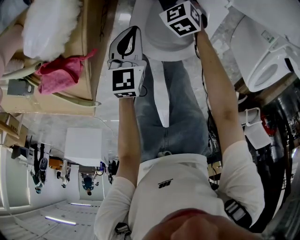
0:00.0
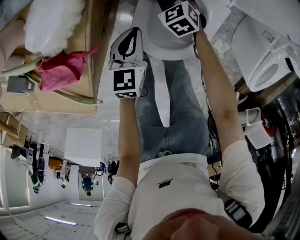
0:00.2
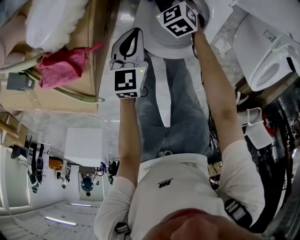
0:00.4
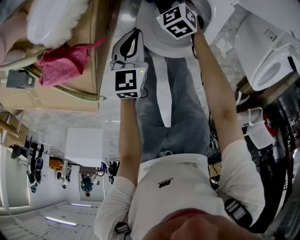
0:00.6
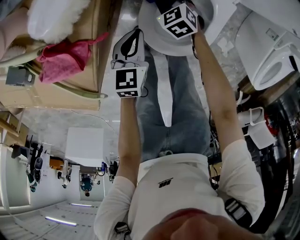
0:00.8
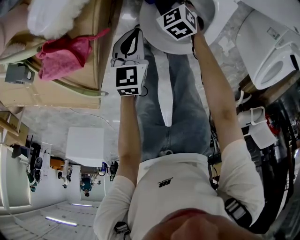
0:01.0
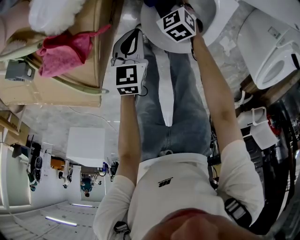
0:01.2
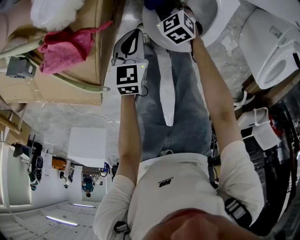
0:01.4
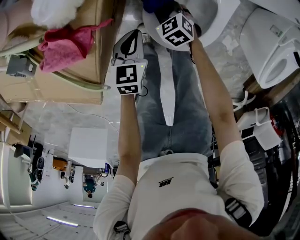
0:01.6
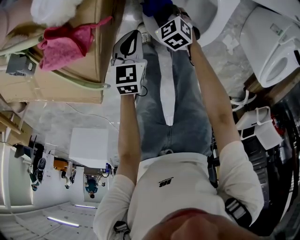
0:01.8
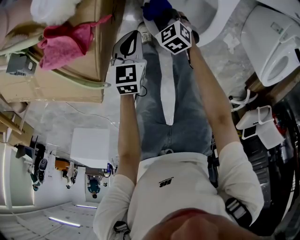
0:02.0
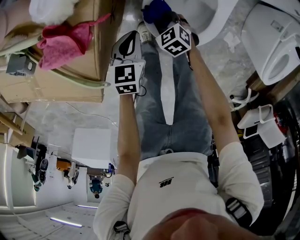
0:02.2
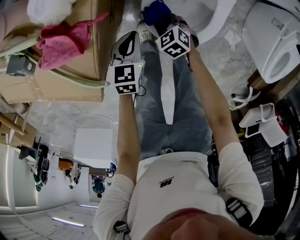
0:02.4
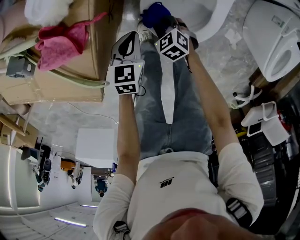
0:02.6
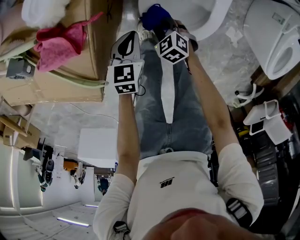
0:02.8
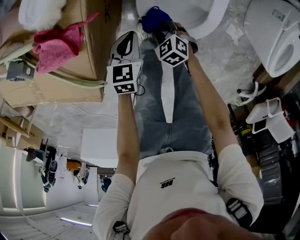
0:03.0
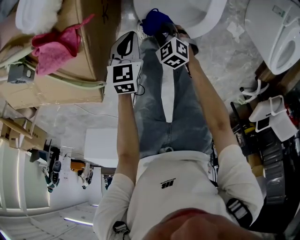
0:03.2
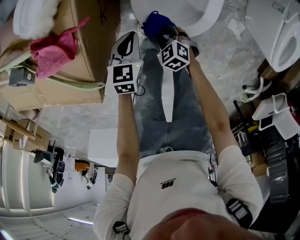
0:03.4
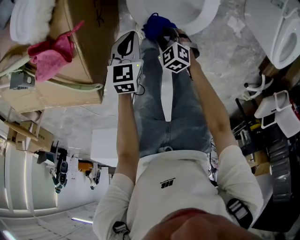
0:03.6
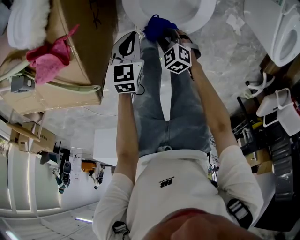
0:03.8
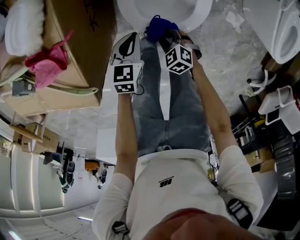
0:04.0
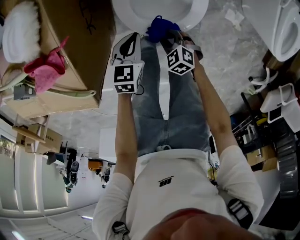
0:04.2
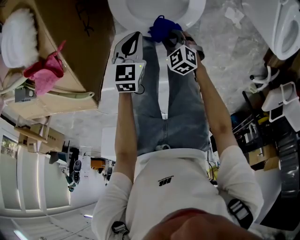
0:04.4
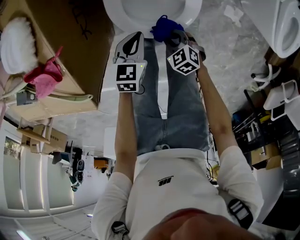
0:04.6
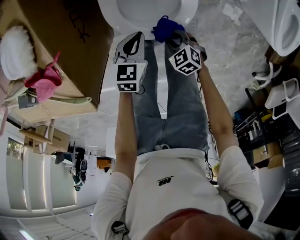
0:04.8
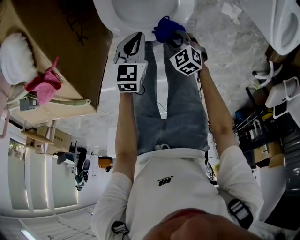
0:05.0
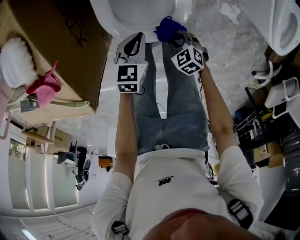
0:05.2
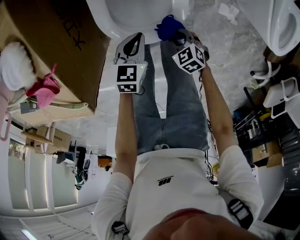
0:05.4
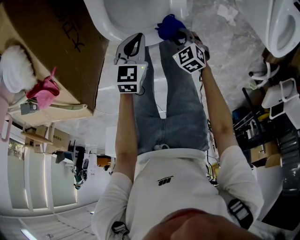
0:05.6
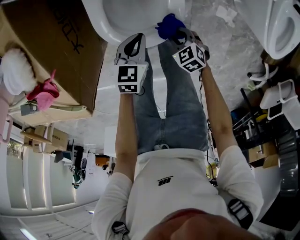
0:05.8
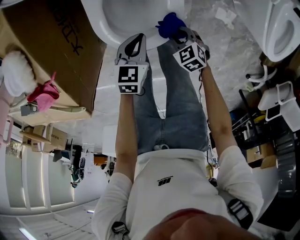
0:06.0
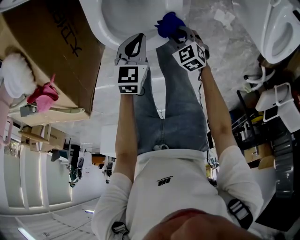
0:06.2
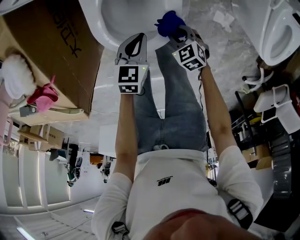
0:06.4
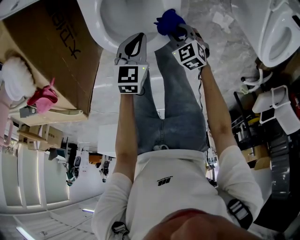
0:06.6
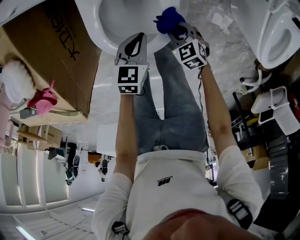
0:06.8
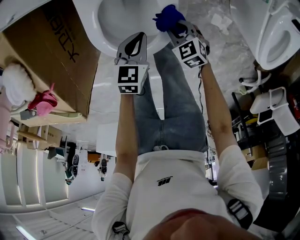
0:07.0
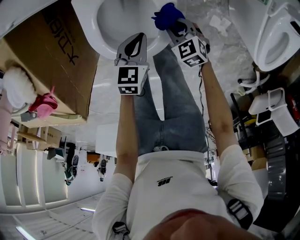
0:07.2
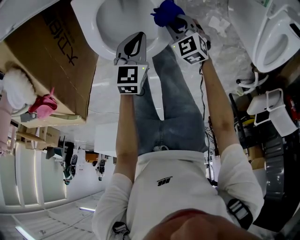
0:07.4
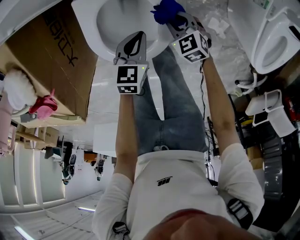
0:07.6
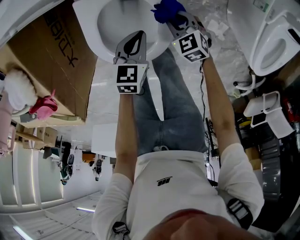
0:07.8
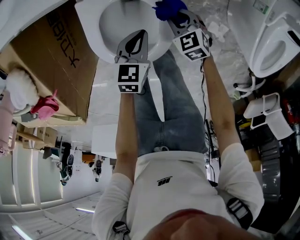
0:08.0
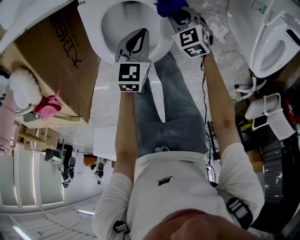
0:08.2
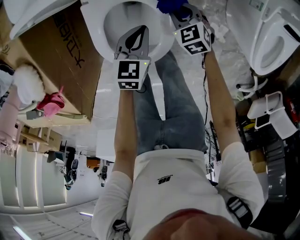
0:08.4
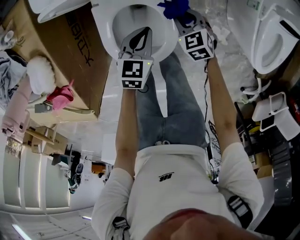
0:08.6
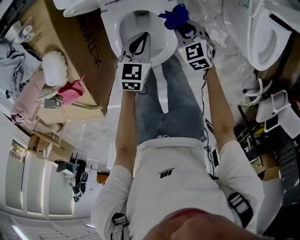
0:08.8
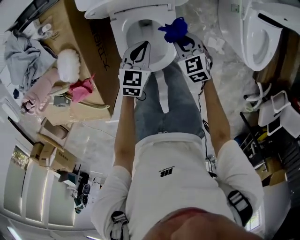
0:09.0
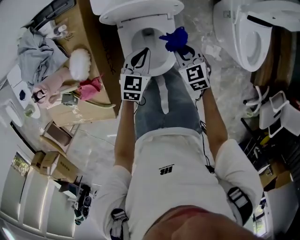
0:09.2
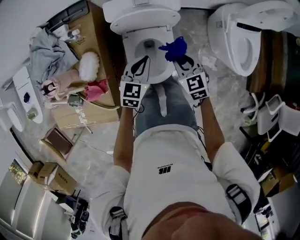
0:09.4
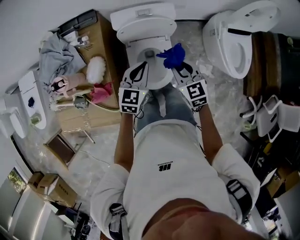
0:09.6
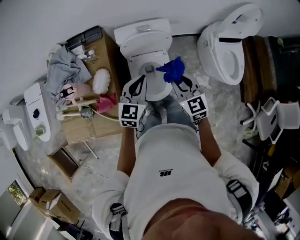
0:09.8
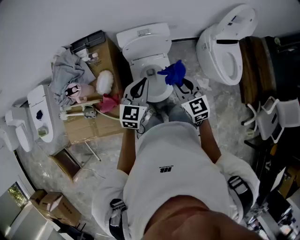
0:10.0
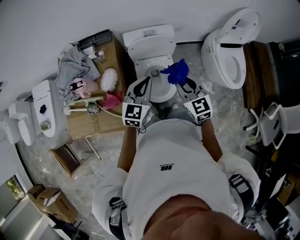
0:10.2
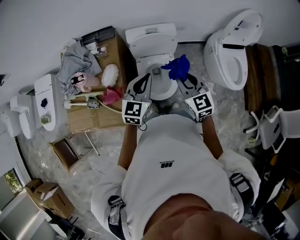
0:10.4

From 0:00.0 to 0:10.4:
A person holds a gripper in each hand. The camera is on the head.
From 0:00.0 to 0:01.4: The two grippers go approximately 10 cm backward and to the left.
From 0:01.4 to 0:03.0: The right gripper is displaced backward by about 15 cm.
From 0:03.0 to 0:04.4: The right gripper goes about 10 cm to the right and backward, while the left gripper goes approximately 10 cm to the right.
From 0:04.4 to 0:06.0: The grippers both shift to the right by roughly 10 cm.
From 0:06.0 to 0:07.4: The right gripper is displaced forward and to the right by roughly 15 cm, while the left gripper heads forward and to the right, covering roughly 10 cm.
From 0:07.4 to 0:09.0: The two grippers go approximately 20 cm upward. The right gripper changes its angle by about 20 degrees.
From 0:09.0 to 0:10.4: The two grippers go approximately 40 cm upward. The left gripper swivels some 30 degrees; the right gripper angles its fingers upward, by roughly 30 degrees.

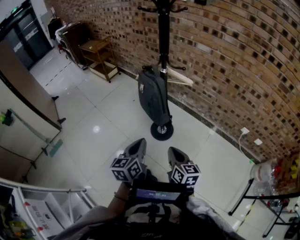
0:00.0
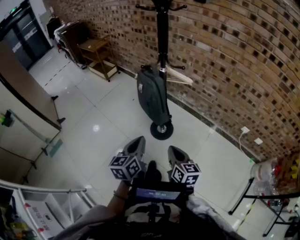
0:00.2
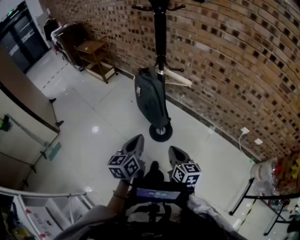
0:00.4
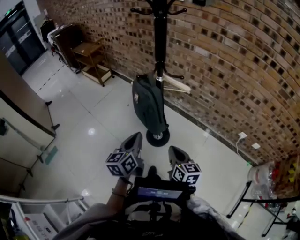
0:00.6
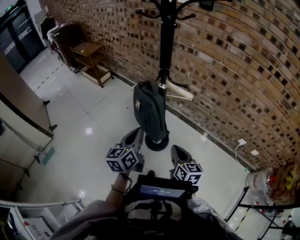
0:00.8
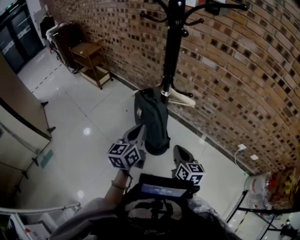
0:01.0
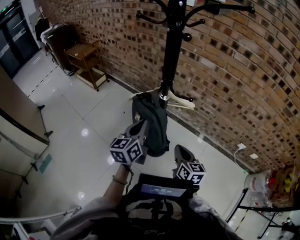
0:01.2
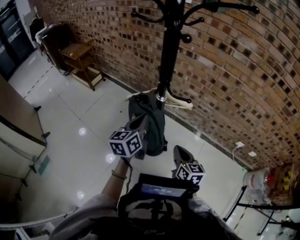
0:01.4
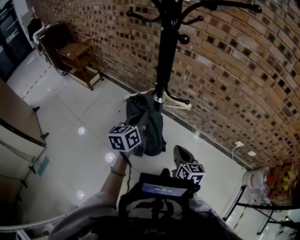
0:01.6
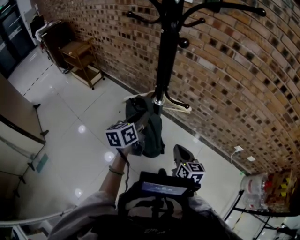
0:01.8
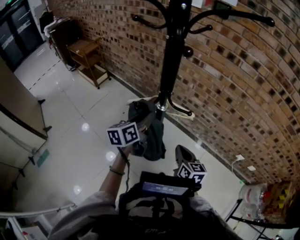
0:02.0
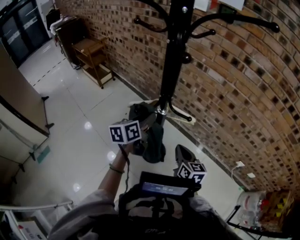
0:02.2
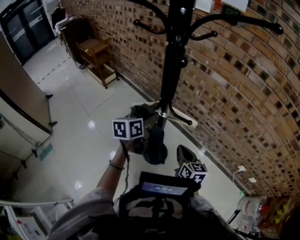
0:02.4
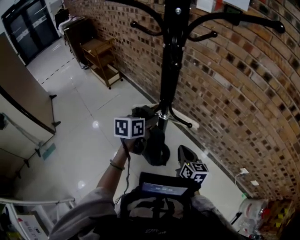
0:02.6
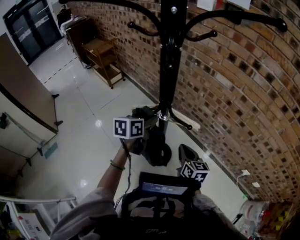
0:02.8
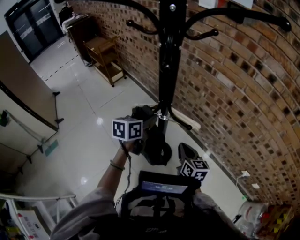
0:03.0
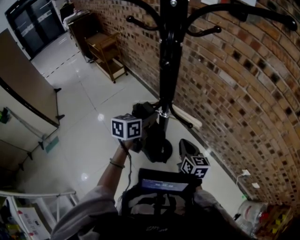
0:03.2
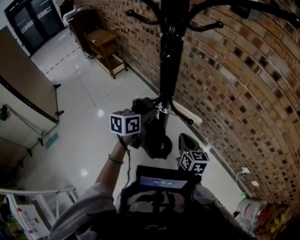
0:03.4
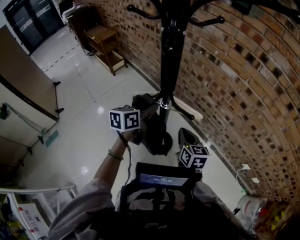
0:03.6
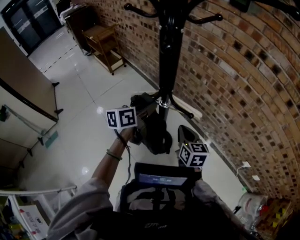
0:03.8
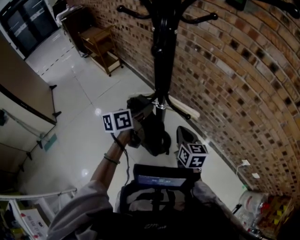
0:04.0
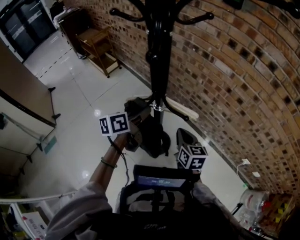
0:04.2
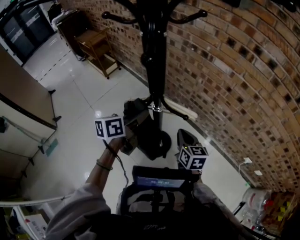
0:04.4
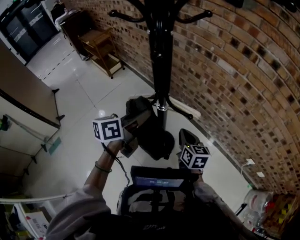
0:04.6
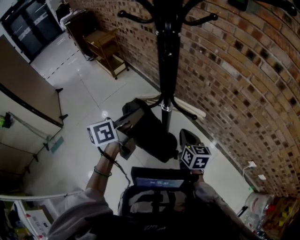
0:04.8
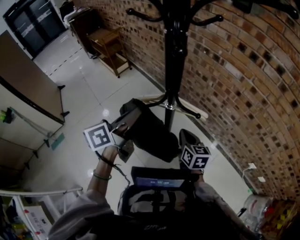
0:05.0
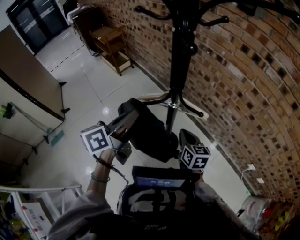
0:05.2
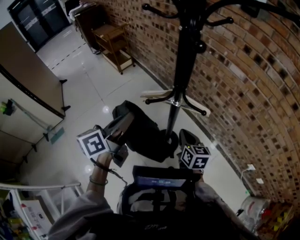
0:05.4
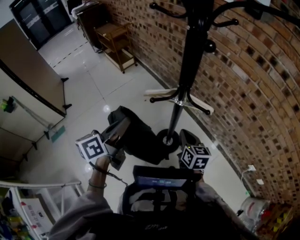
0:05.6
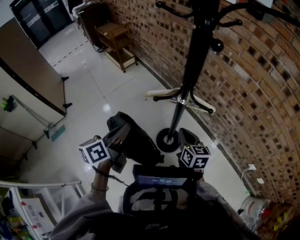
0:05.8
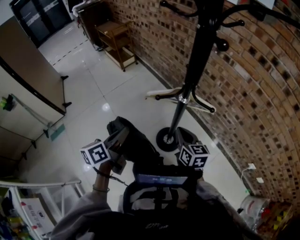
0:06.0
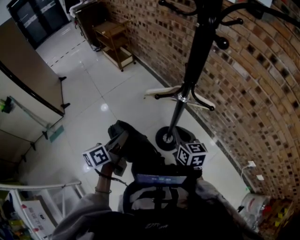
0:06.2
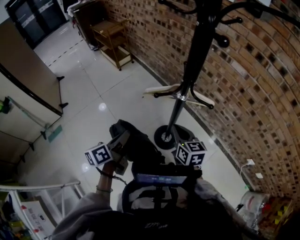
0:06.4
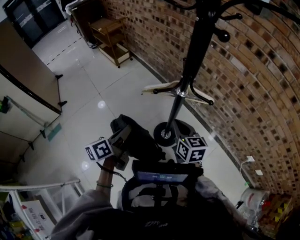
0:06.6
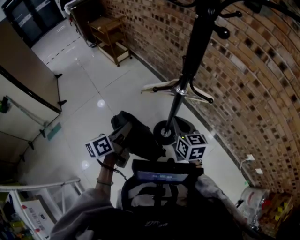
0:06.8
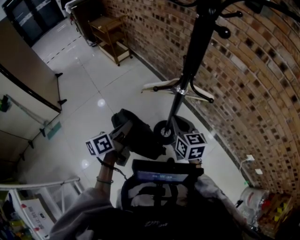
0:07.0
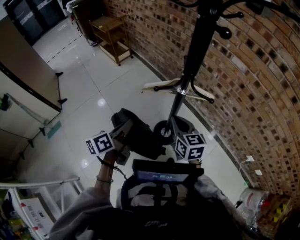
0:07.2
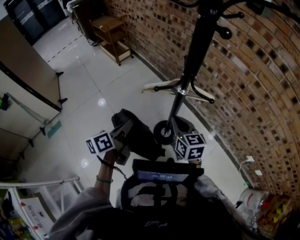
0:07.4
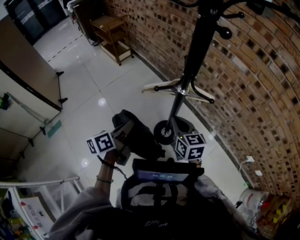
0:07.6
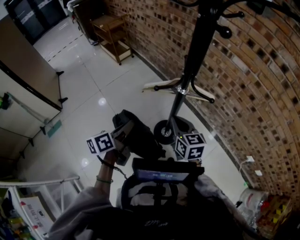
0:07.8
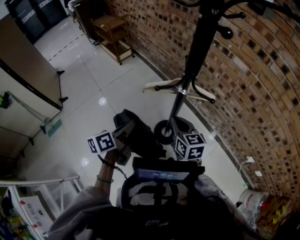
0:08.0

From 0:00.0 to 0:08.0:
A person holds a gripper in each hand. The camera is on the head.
From 0:00.0 to 0:01.6: The two grippers go some 30 cm forward.
From 0:01.6 to 0:03.2: The right gripper is displaced forward by some 15 cm. The left gripper travels forward by approximately 10 cm, and opens and closes again.
From 0:03.2 to 0:04.8: The left gripper goes roughly 10 cm upward and backward, and rotates about 20 degrees.
From 0:04.8 to 0:06.4: The right gripper shifts some 10 cm to the left and backward. Meanwhile the left gripper is displaced backward, to the left and downward by some 20 cm.
From 0:06.4 to 0:08.0: The grippers move only a little.

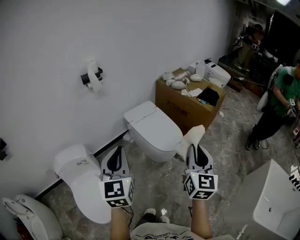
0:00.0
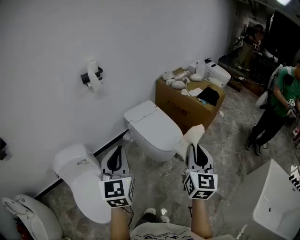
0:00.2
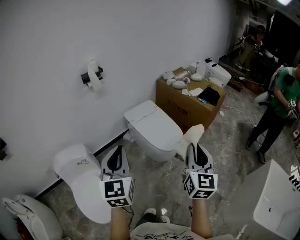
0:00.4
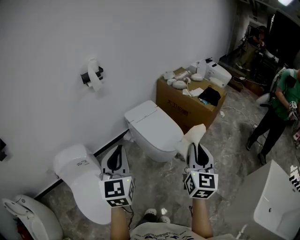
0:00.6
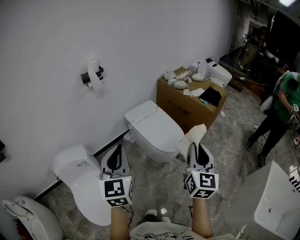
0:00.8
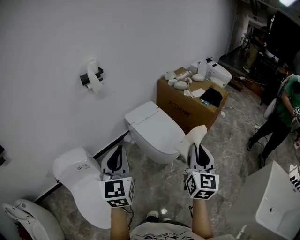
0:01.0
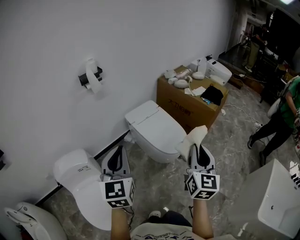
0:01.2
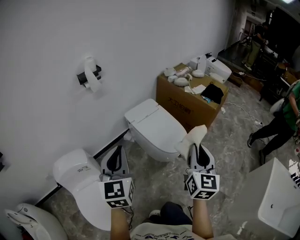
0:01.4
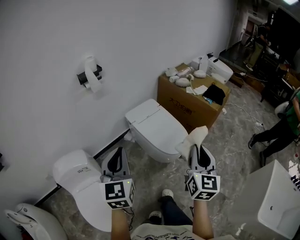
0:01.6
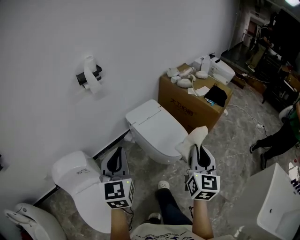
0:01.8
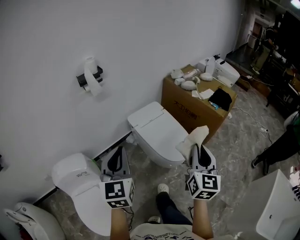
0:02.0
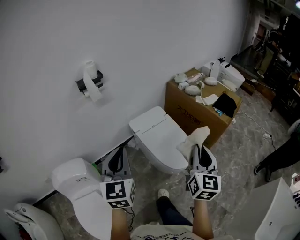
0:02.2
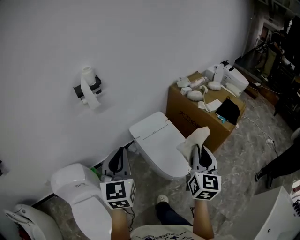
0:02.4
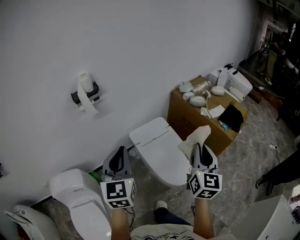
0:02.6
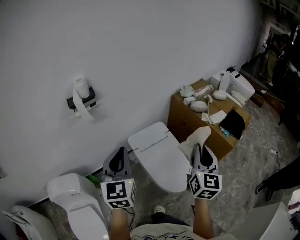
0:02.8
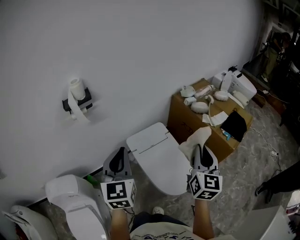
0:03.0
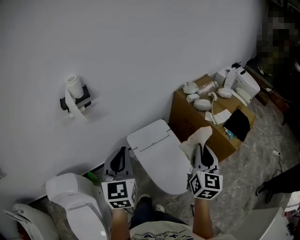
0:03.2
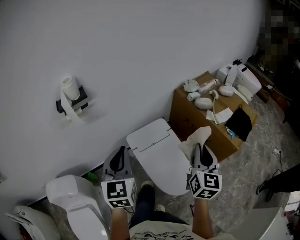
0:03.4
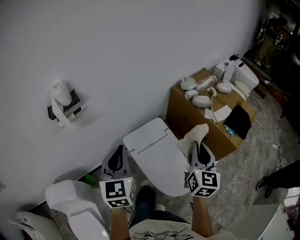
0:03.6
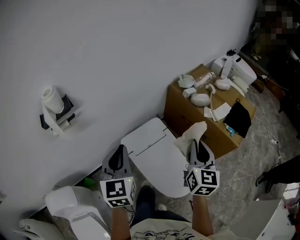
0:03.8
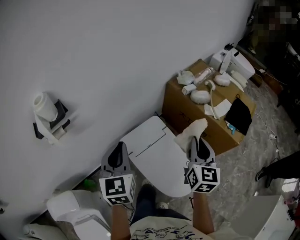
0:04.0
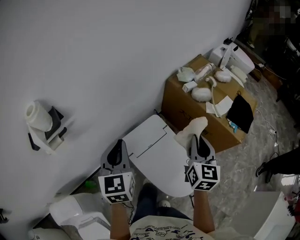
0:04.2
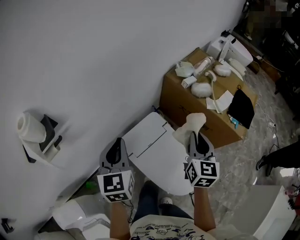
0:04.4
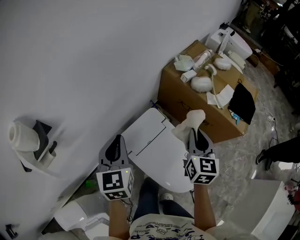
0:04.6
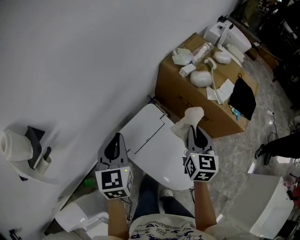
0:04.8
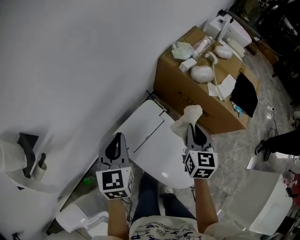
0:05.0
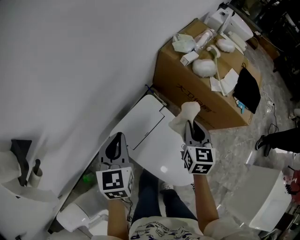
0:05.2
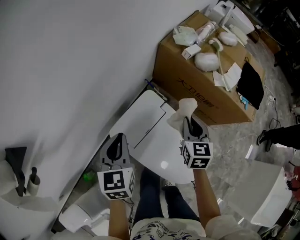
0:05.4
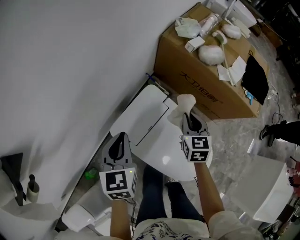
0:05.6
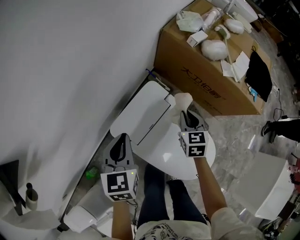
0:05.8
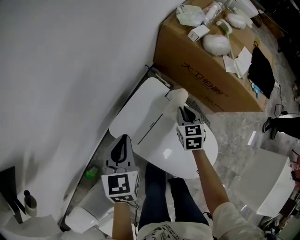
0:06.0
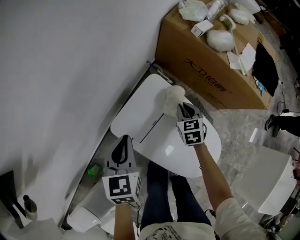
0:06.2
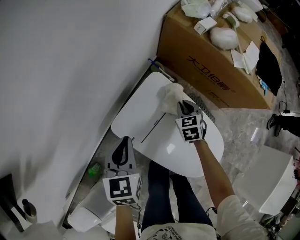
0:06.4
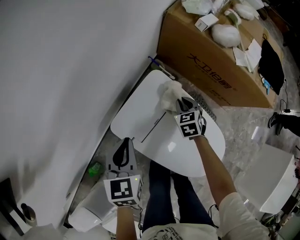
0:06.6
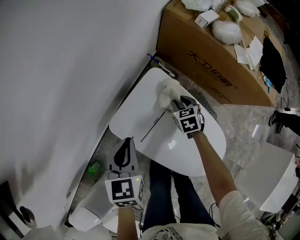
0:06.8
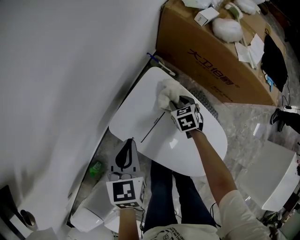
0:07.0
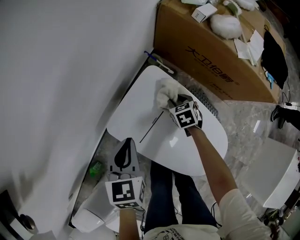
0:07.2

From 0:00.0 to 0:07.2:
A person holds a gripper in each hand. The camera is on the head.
From 0:00.0 to 0:01.4: The right gripper shifts some 5 cm forward. Meanwhile the left gripper goes approximately 10 cm forward and to the left.
From 0:01.4 to 0:02.8: Both grippers travel together forward, approximately 35 cm.
From 0:02.8 to 0:04.4: The left gripper goes about 30 cm forward; the right gripper shifts roughly 30 cm forward and downward.
From 0:04.4 to 0:05.8: Both grippers move downward, some 25 cm. The right gripper turns by about 30 degrees; the left gripper changes its angle by some 20 degrees.
From 0:05.8 to 0:07.2: The right gripper travels downward by about 20 cm, rotates about 20 degrees, and opens up, while the left gripper is displaced downward by about 10 cm.
